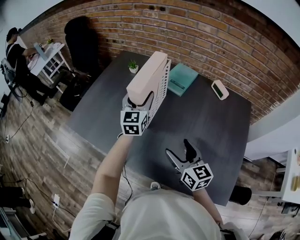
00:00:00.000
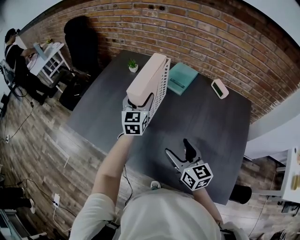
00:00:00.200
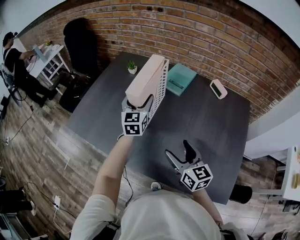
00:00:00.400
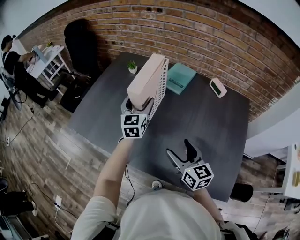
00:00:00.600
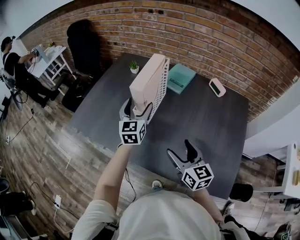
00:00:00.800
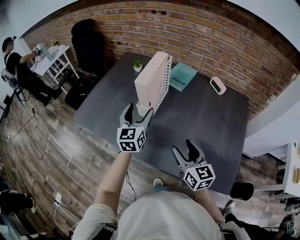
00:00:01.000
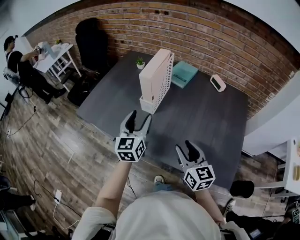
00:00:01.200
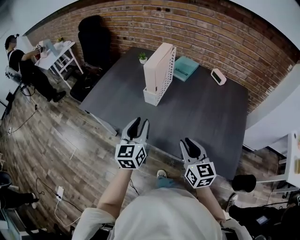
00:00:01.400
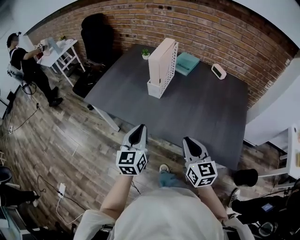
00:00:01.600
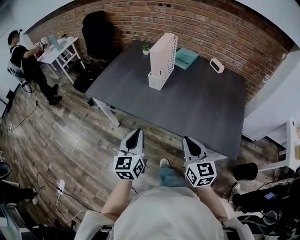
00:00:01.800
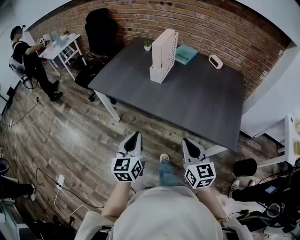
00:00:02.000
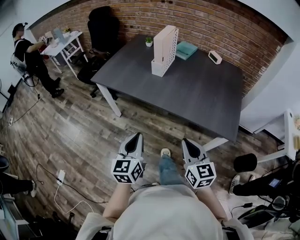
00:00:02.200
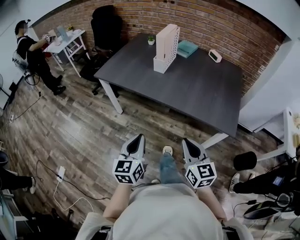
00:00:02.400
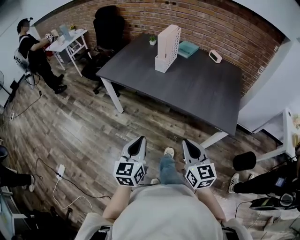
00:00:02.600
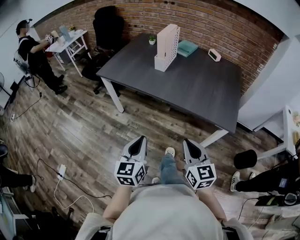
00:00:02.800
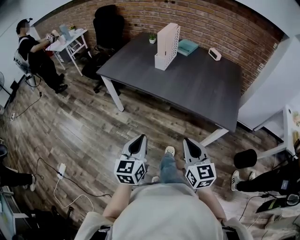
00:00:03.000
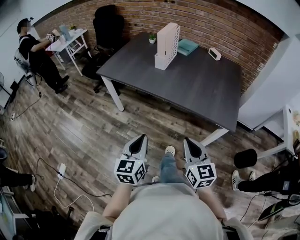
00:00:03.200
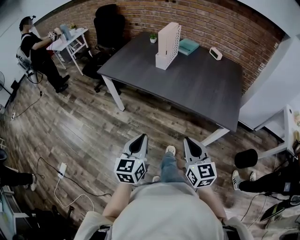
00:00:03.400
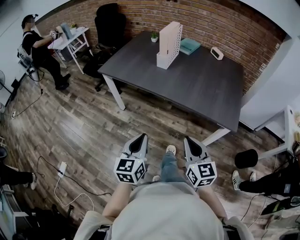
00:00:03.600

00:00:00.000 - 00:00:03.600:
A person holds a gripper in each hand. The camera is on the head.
00:00:00.000 - 00:00:01.800: The left gripper shifts roughly 40 cm backward, and closes its fingers. The right gripper moves backward, some 25 cm, and closes up.
00:00:01.800 - 00:00:03.600: The grippers both shift backward by about 20 cm.

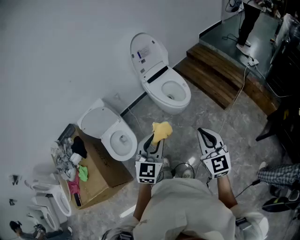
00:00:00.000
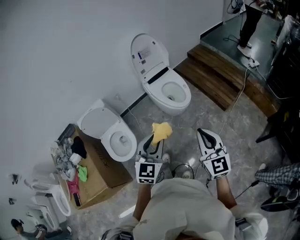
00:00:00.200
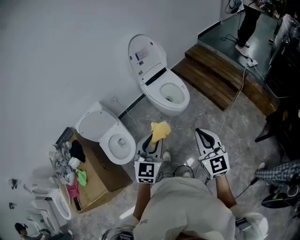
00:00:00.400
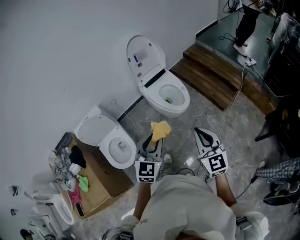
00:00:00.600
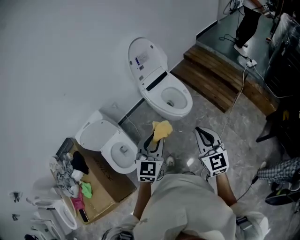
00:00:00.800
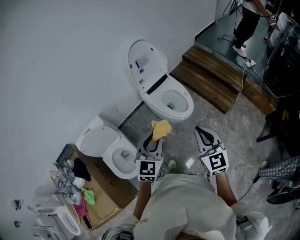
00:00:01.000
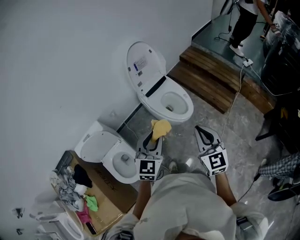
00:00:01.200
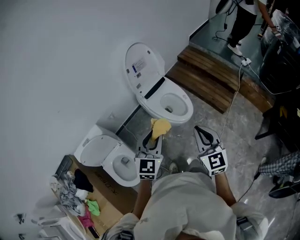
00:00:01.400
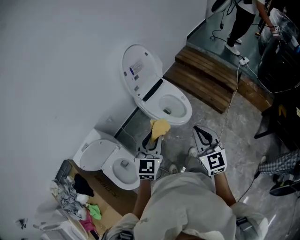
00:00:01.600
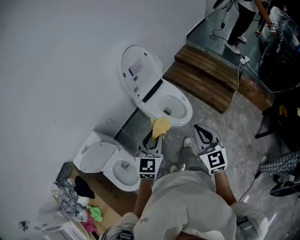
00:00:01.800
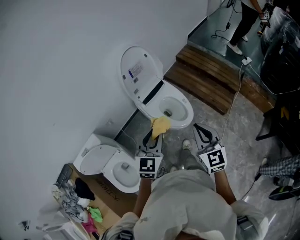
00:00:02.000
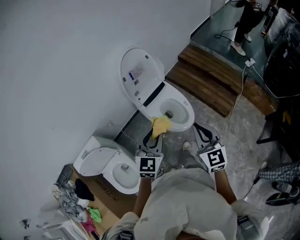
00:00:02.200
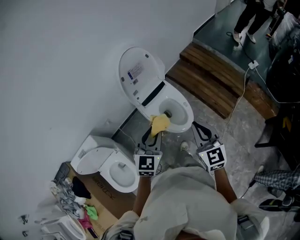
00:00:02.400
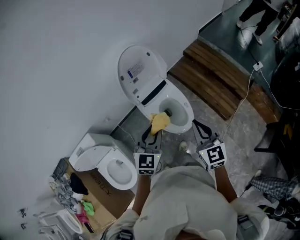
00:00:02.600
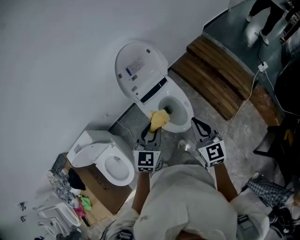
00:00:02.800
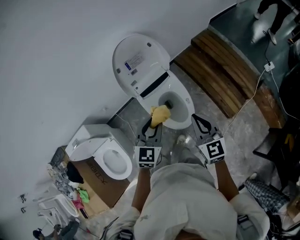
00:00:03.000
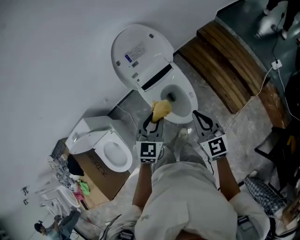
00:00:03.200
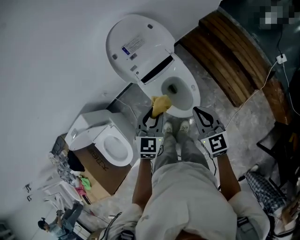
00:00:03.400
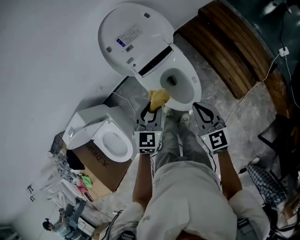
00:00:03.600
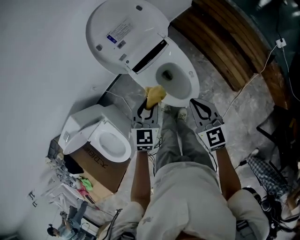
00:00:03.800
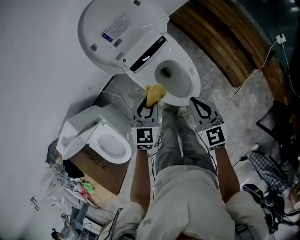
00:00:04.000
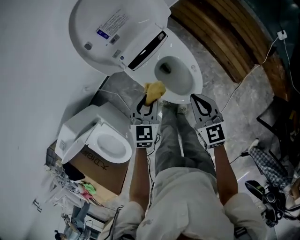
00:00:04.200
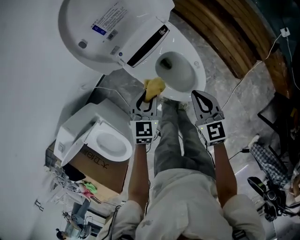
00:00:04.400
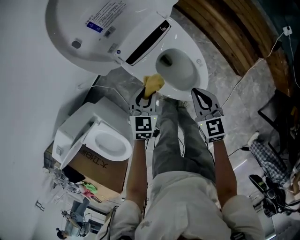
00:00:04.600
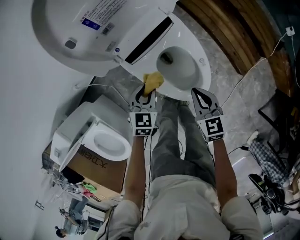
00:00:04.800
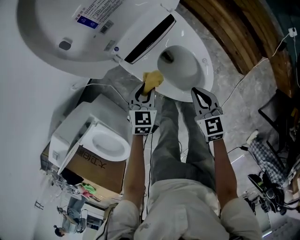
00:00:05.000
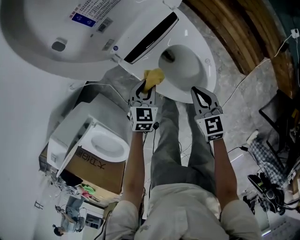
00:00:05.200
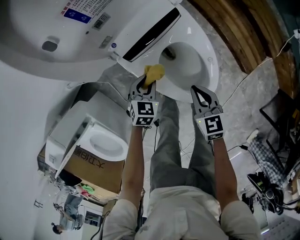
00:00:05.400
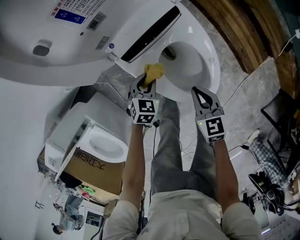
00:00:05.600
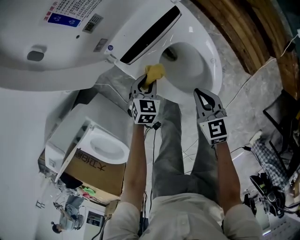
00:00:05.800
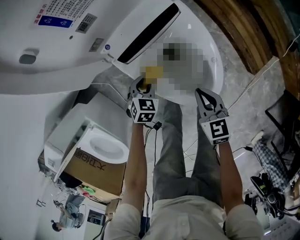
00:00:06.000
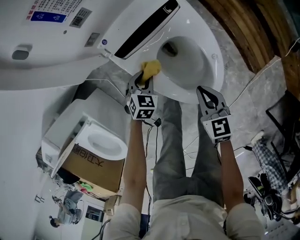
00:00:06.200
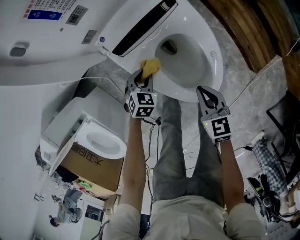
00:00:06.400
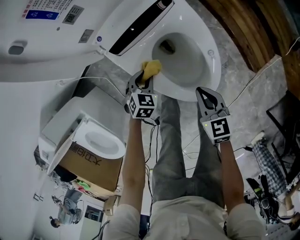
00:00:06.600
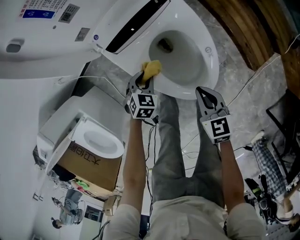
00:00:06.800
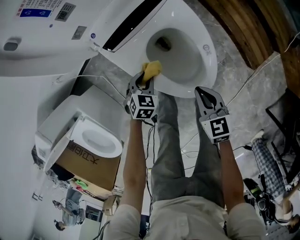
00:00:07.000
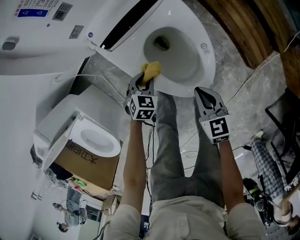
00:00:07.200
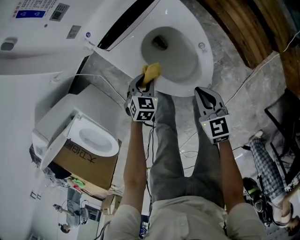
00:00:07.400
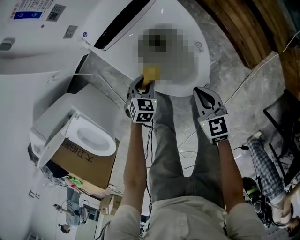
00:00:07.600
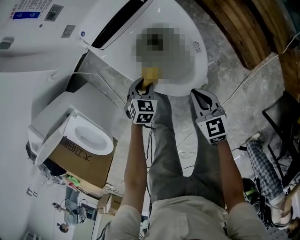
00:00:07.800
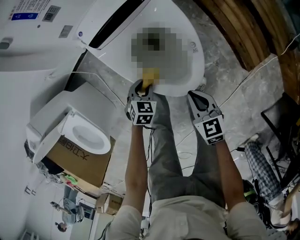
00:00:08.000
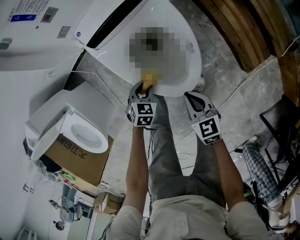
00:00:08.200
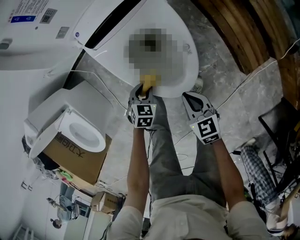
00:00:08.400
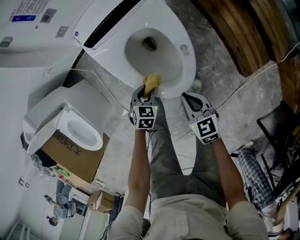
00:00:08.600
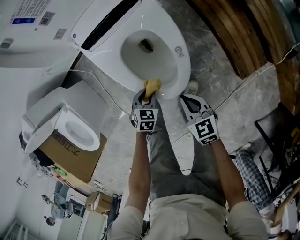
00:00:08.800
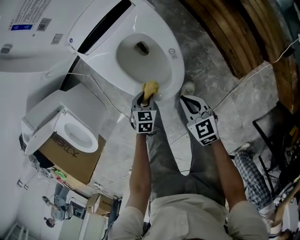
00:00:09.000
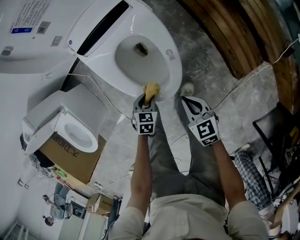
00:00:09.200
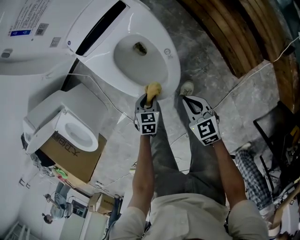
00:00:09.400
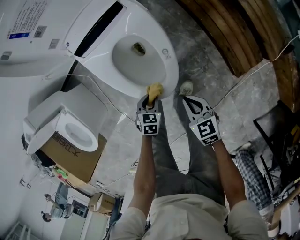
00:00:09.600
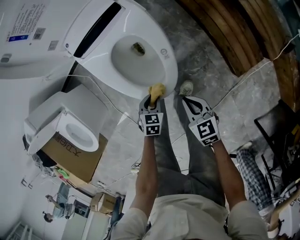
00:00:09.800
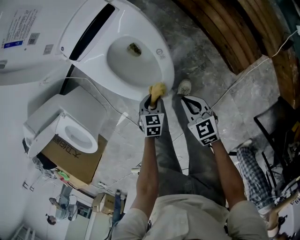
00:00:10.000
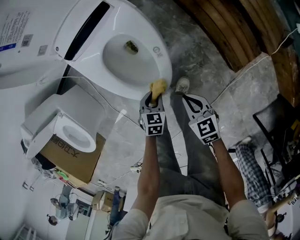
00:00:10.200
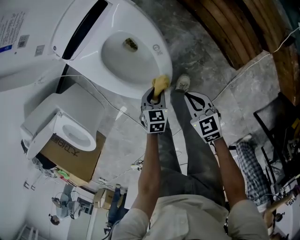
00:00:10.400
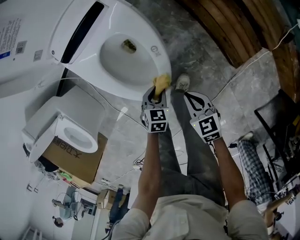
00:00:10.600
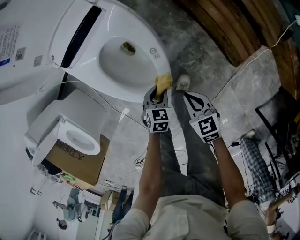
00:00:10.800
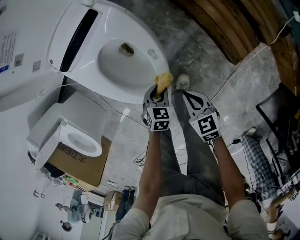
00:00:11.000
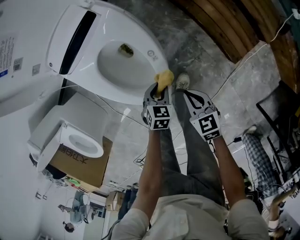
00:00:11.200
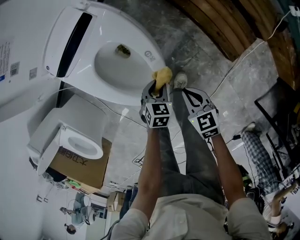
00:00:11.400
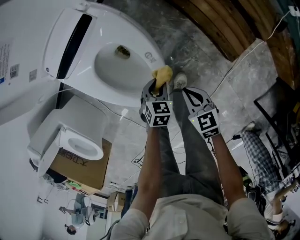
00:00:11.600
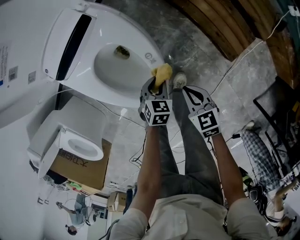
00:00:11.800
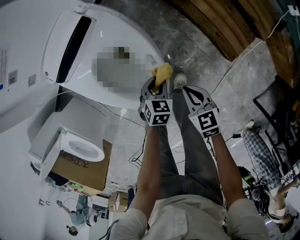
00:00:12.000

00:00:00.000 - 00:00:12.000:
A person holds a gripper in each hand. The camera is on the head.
00:00:00.000 - 00:00:01.600: The grippers both shift forward and to the left by about 25 cm.
00:00:01.600 - 00:00:03.000: Both grippers move forward, approximately 25 cm.
00:00:03.000 - 00:00:04.400: Both grippers move downward, approximately 25 cm.
00:00:04.400 - 00:00:06.000: The two grippers go approximately 25 cm downward. The left gripper turns by some 20 degrees.
00:00:06.000 - 00:00:07.600: The right gripper shifts about 10 cm to the right and backward. The left gripper heads backward and to the right, covering approximately 10 cm.
00:00:07.600 - 00:00:09.000: The right gripper shifts approximately 5 cm to the right, while the left gripper heads backward and to the right, covering about 15 cm.
00:00:09.000 - 00:00:10.400: The right gripper is displaced to the right by about 5 cm. The left gripper moves to the right, roughly 10 cm.
00:00:10.400 - 00:00:12.000: The right gripper heads forward, covering approximately 5 cm. The left gripper heads forward, covering approximately 10 cm.

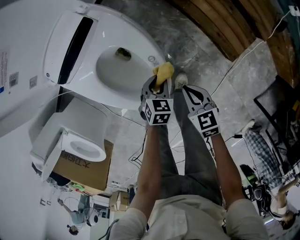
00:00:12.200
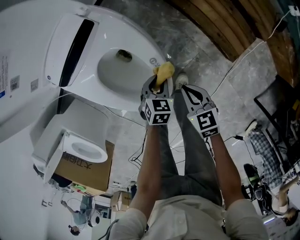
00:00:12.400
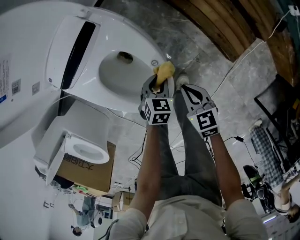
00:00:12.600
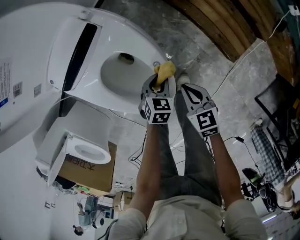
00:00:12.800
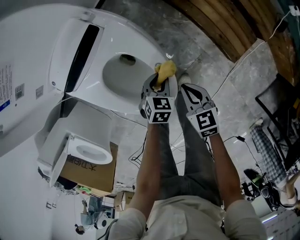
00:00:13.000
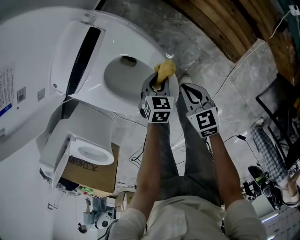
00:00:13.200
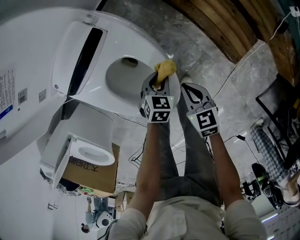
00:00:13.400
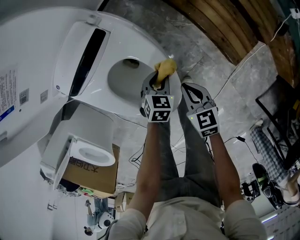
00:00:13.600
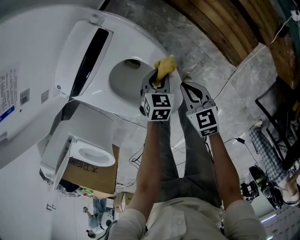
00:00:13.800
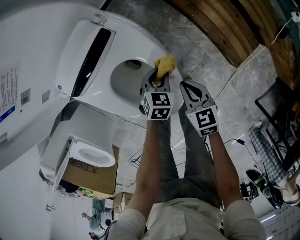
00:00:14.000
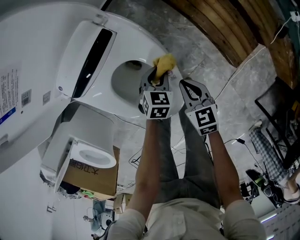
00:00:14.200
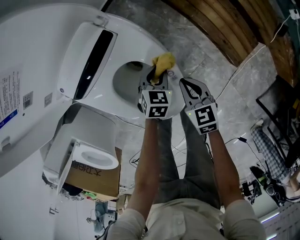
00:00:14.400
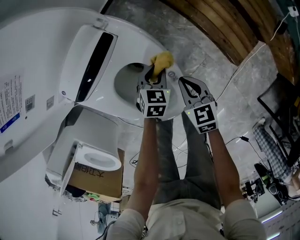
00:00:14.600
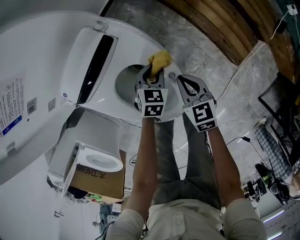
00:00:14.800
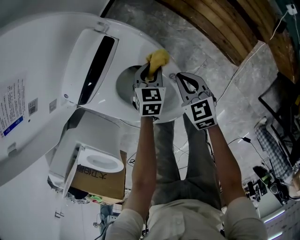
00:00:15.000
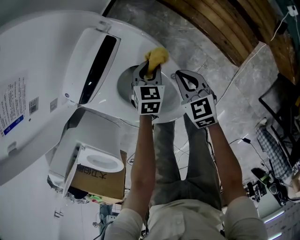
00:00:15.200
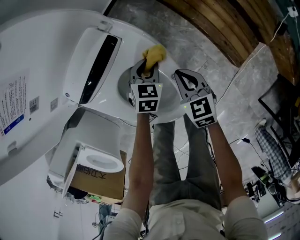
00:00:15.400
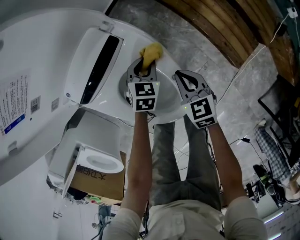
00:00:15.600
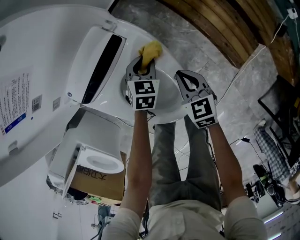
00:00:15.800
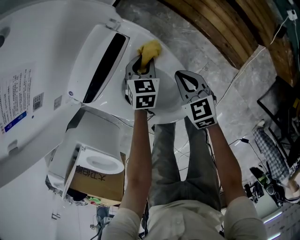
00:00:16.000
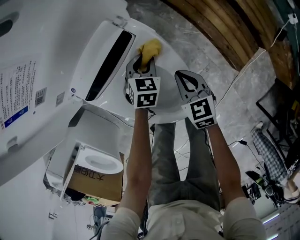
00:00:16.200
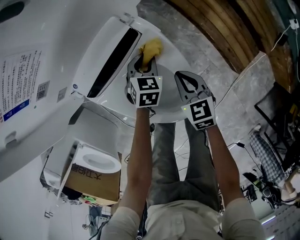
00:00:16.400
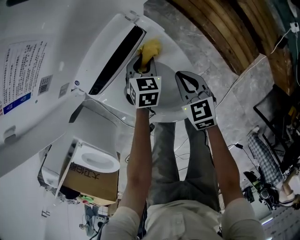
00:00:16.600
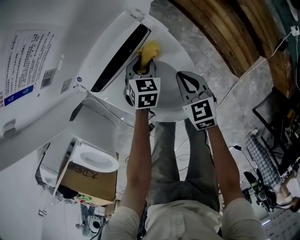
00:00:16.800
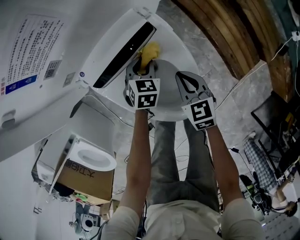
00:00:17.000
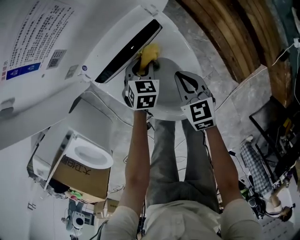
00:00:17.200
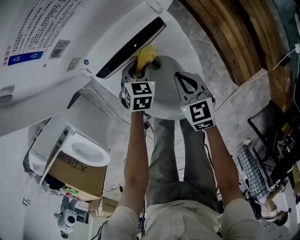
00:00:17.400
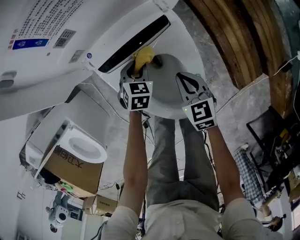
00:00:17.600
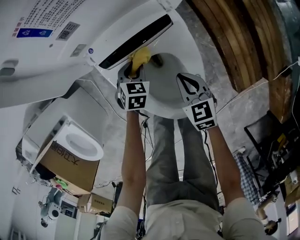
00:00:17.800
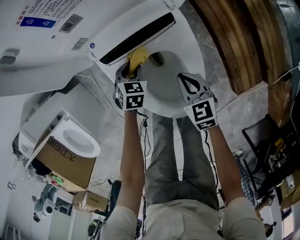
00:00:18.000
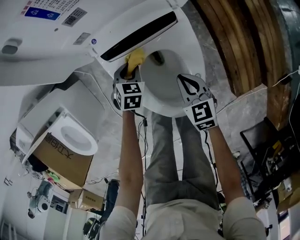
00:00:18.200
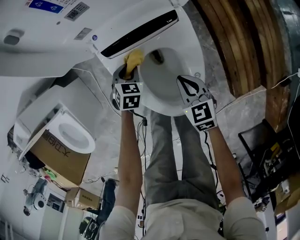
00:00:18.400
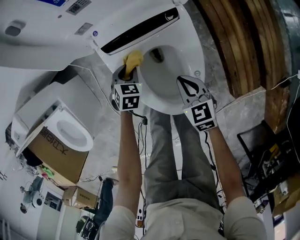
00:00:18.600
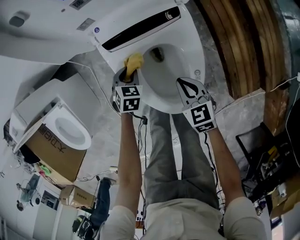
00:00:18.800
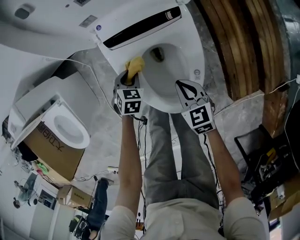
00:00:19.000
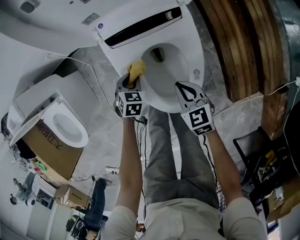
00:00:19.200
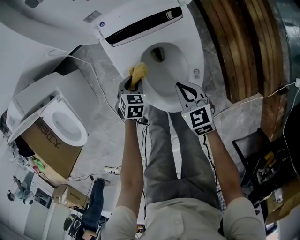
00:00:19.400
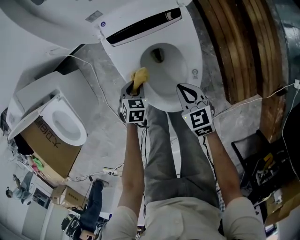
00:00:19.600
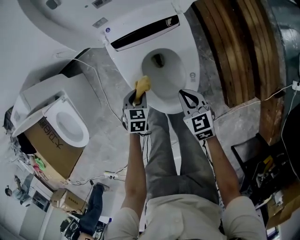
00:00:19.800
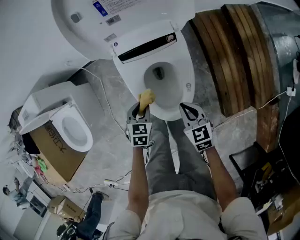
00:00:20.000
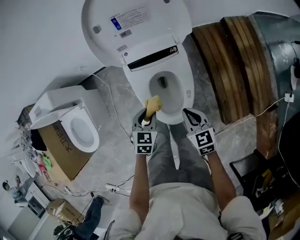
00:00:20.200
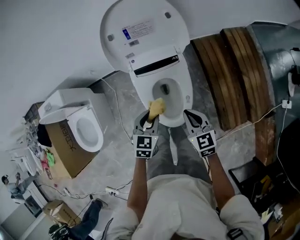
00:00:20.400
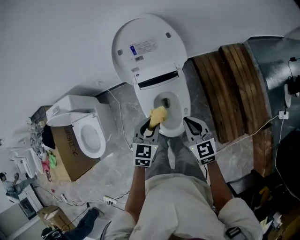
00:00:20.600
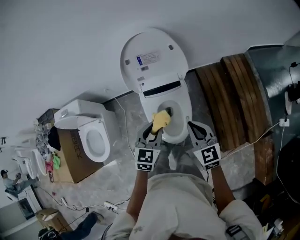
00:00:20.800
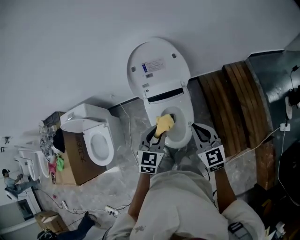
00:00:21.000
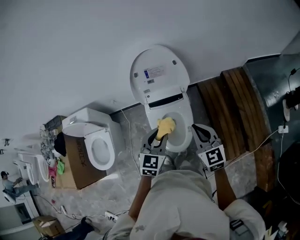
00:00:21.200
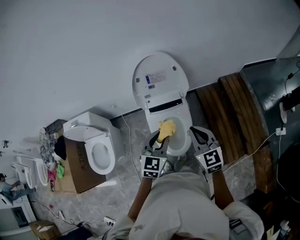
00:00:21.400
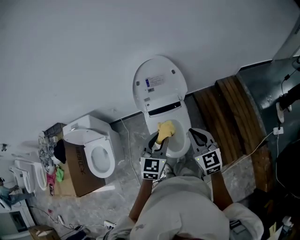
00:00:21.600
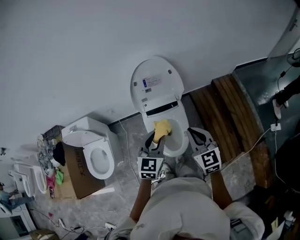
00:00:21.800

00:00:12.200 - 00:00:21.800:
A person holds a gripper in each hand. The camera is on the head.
00:00:12.200 - 00:00:13.800: The left gripper travels forward by some 10 cm; the right gripper heads forward and to the left, covering about 10 cm.
00:00:13.800 - 00:00:15.400: Both grippers travel together forward and to the left, about 10 cm.
00:00:15.400 - 00:00:17.000: Both grippers move to the left, roughly 10 cm.
00:00:17.000 - 00:00:18.600: The right gripper is displaced backward by about 5 cm, and swivels roughly 20 degrees; the left gripper is displaced to the left and backward by roughly 15 cm.
00:00:18.600 - 00:00:20.200: The right gripper shifts roughly 20 cm upward, while the left gripper goes about 25 cm upward and backward.
00:00:20.200 - 00:00:21.800: Both grippers move upward, roughly 35 cm. The right gripper rotates approximately 30 degrees. Meanwhile the left gripper changes its angle by about 30 degrees.
